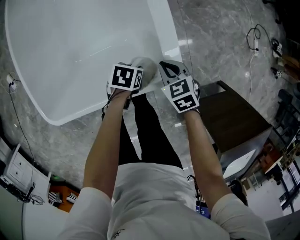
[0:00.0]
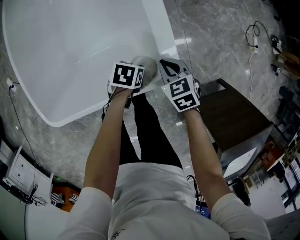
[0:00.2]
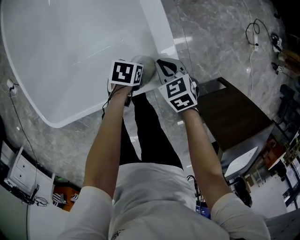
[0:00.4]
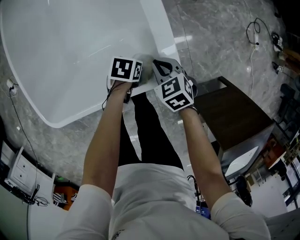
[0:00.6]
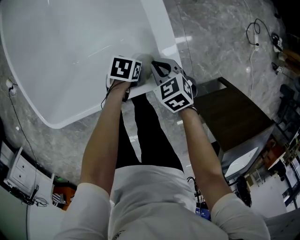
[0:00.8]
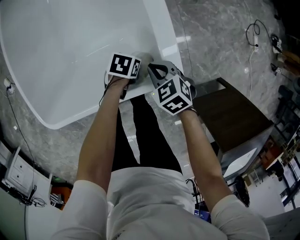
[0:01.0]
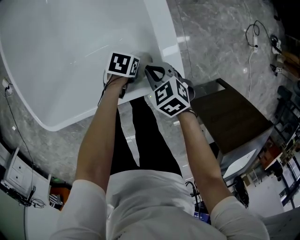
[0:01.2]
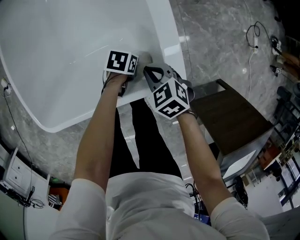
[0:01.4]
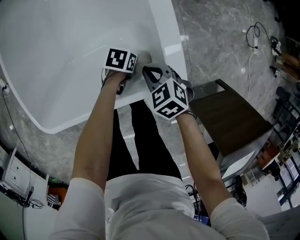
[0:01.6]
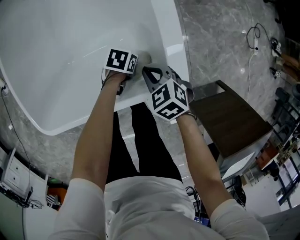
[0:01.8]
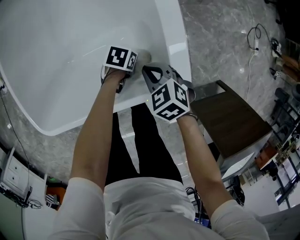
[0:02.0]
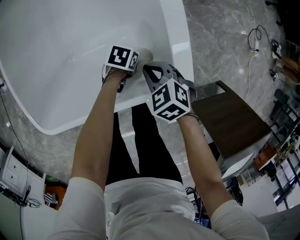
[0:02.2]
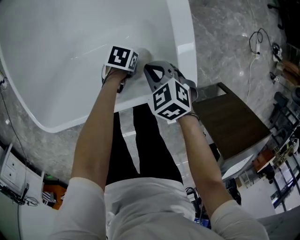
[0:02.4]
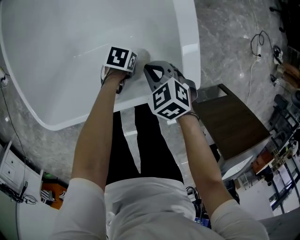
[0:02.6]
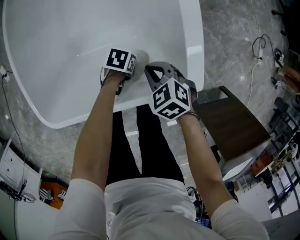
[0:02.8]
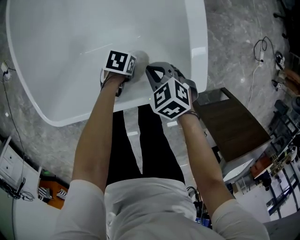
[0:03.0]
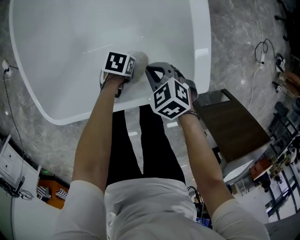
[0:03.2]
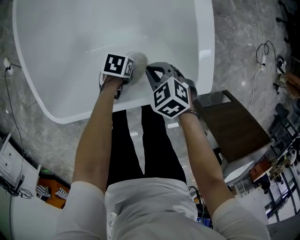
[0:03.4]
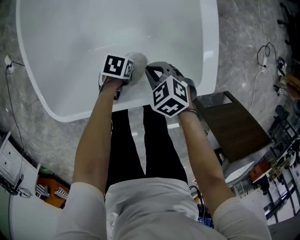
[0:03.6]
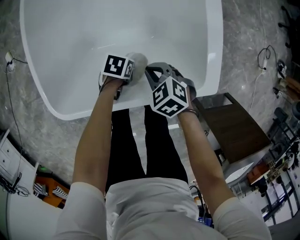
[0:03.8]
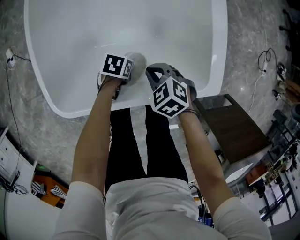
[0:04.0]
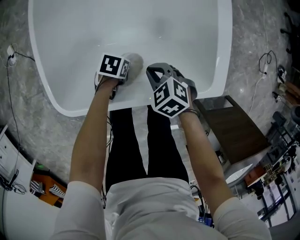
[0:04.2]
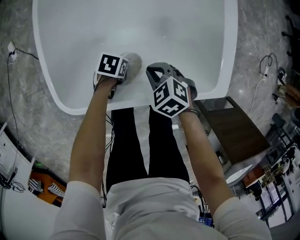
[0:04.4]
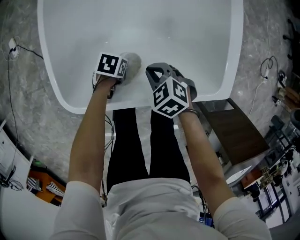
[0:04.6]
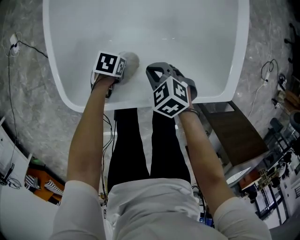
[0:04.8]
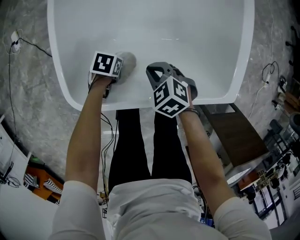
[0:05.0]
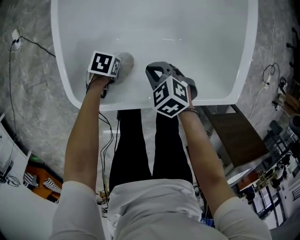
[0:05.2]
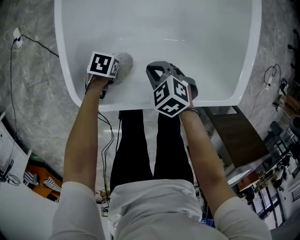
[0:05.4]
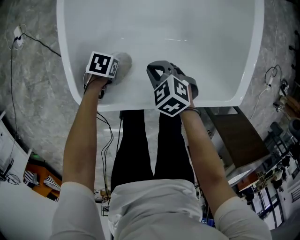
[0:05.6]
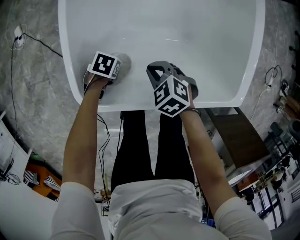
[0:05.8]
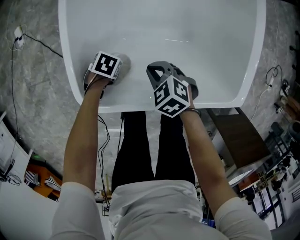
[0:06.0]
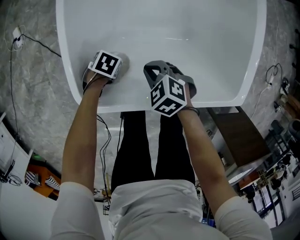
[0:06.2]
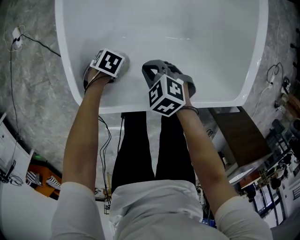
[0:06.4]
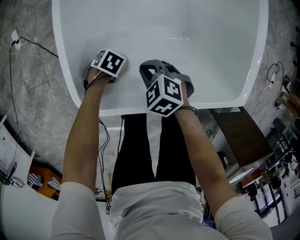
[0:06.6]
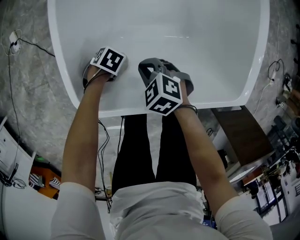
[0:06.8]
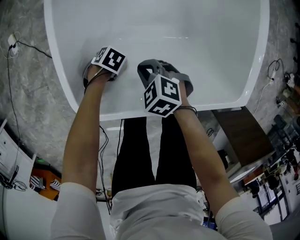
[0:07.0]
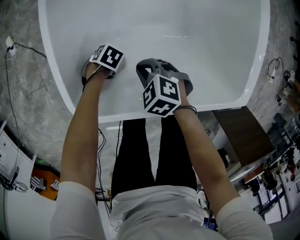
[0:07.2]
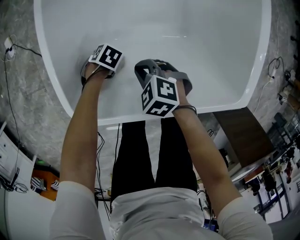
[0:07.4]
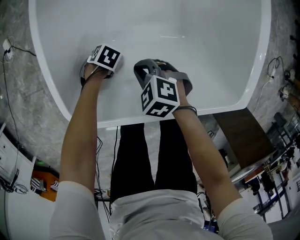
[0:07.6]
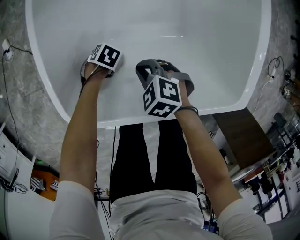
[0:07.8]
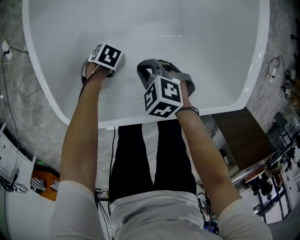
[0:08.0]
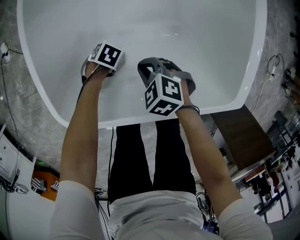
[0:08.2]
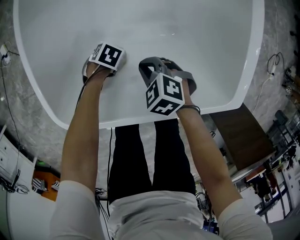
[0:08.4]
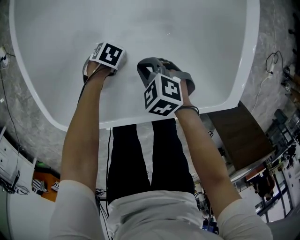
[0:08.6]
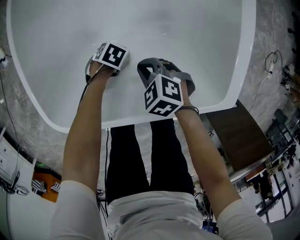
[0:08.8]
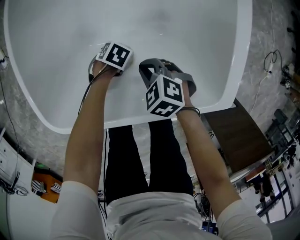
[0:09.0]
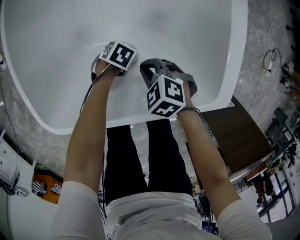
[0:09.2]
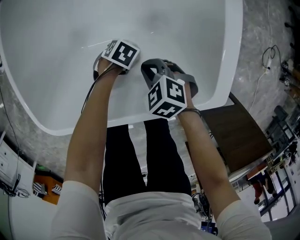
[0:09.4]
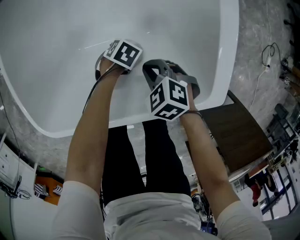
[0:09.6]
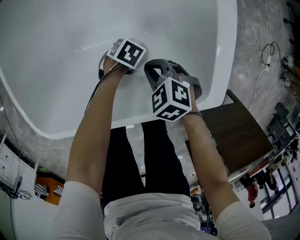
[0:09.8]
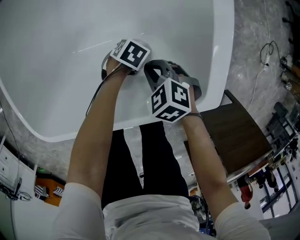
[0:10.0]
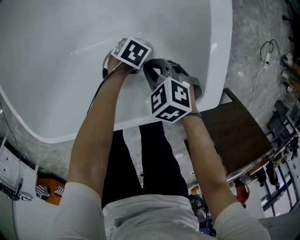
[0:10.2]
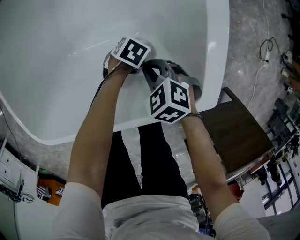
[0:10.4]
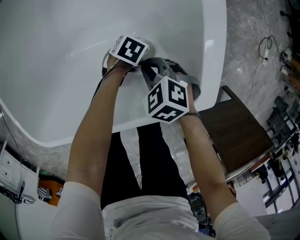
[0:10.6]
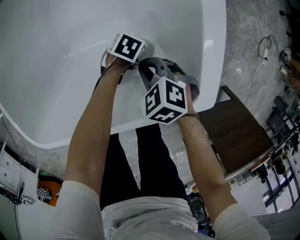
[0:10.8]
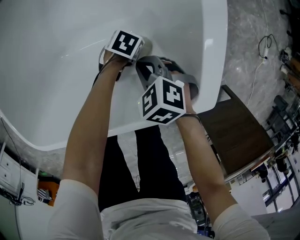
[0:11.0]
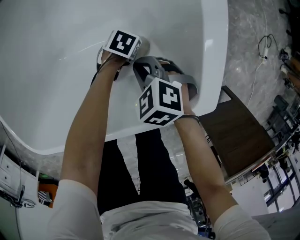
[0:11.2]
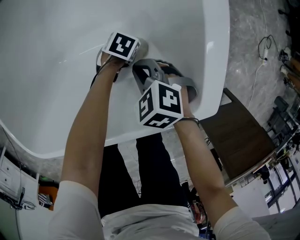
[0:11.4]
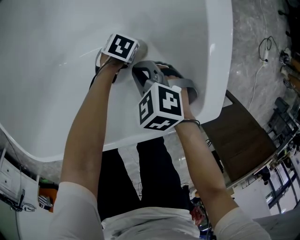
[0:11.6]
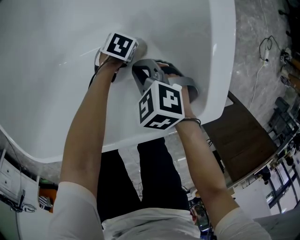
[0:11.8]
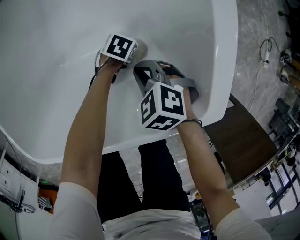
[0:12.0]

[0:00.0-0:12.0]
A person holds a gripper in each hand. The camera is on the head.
0:00.0 to 0:01.6: The right gripper changes place by some 5 cm.
0:01.6 to 0:03.0: The right gripper ends up some 5 cm from where it was.
0:03.0 to 0:04.4: The right gripper shifts by some 15 cm.
0:04.4 to 0:06.0: The right gripper shifts by about 10 cm.
0:07.6 to 0:09.0: The right gripper ends up roughly 15 cm from where it was.
0:09.0 to 0:10.4: The right gripper changes place by some 10 cm.

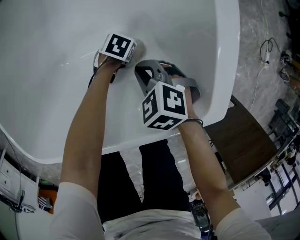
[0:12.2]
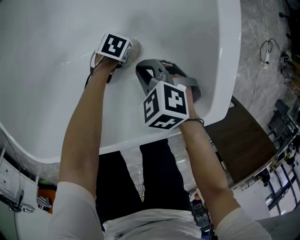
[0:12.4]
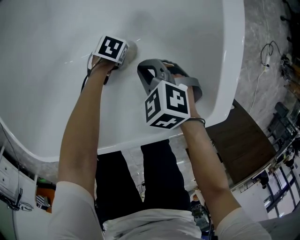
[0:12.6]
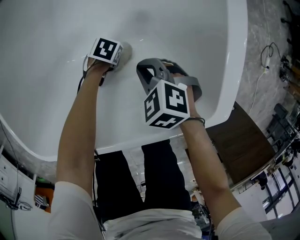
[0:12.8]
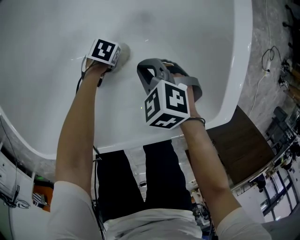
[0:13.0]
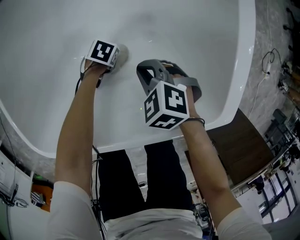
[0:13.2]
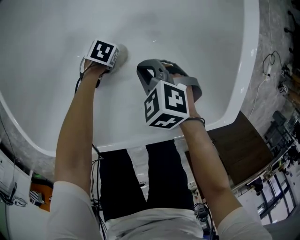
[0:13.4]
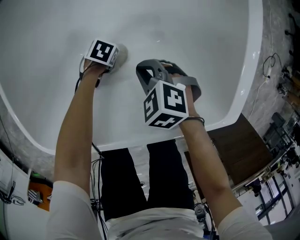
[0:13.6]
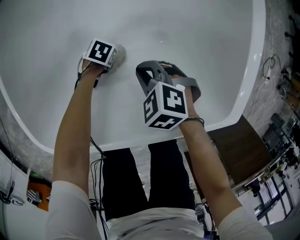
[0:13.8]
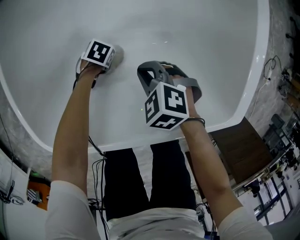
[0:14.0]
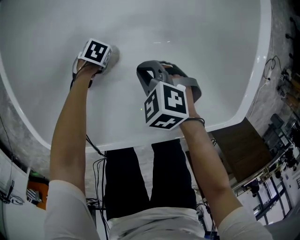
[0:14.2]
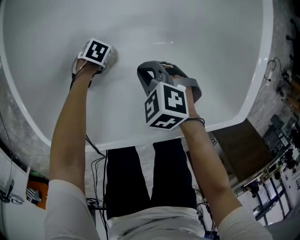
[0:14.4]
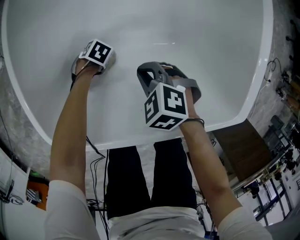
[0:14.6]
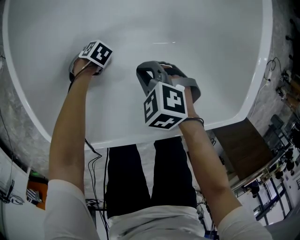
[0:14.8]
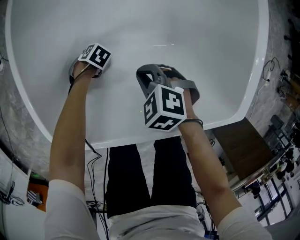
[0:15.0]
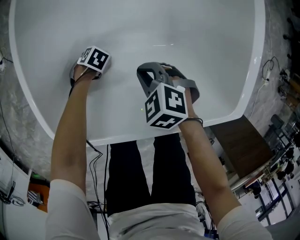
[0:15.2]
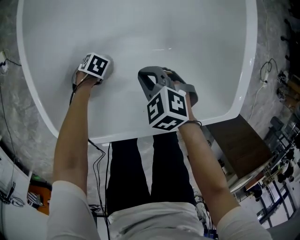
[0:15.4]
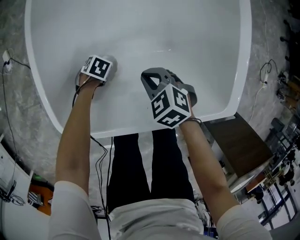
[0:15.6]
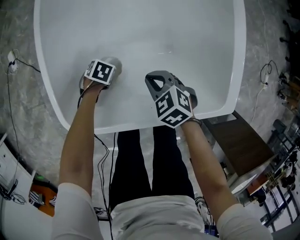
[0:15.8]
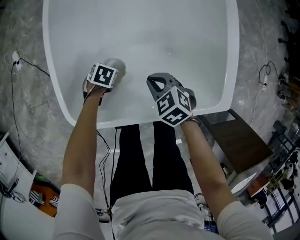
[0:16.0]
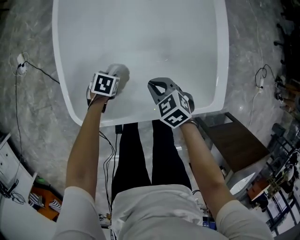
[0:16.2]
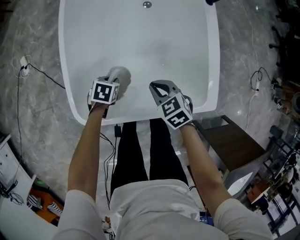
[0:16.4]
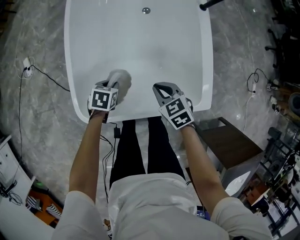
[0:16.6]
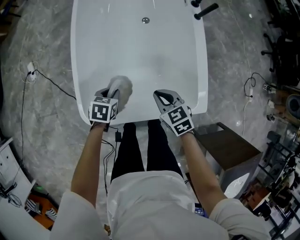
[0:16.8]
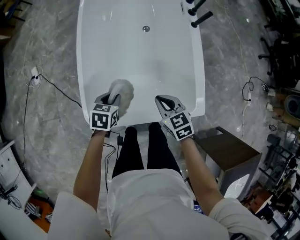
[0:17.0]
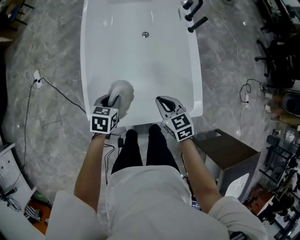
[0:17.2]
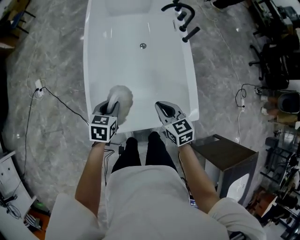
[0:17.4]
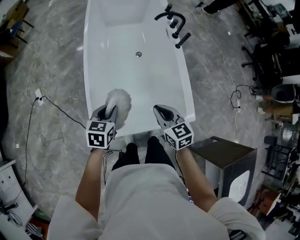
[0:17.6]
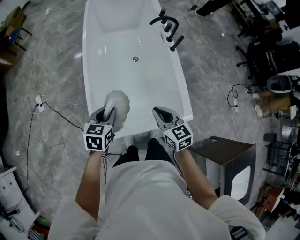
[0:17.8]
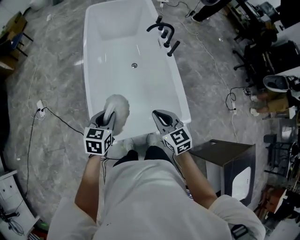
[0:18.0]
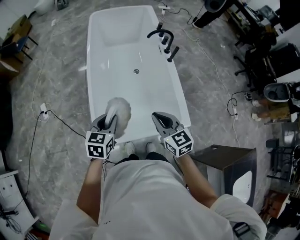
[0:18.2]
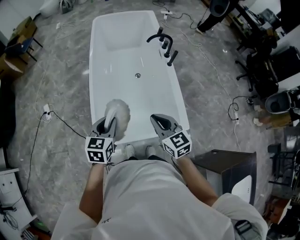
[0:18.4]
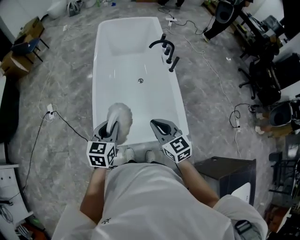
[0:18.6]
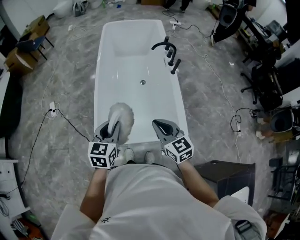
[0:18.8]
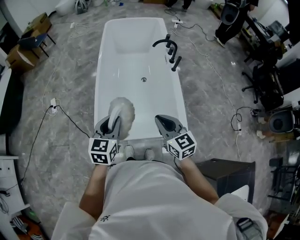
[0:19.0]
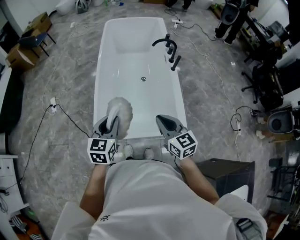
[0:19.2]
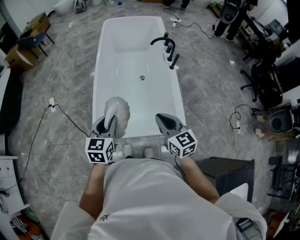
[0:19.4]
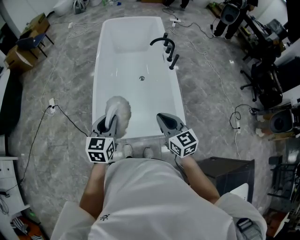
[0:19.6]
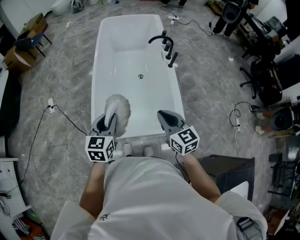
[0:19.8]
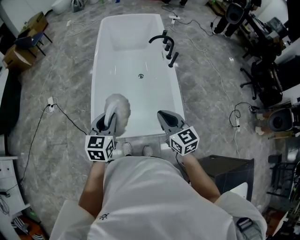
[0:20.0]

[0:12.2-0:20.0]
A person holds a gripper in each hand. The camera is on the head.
0:12.2 to 0:13.8: The right gripper shifts by roughly 10 cm.
0:13.8 to 0:15.4: The right gripper ends up roughly 5 cm from where it was.
0:15.4 to 0:16.8: The right gripper travels upward by about 20 cm, and swivels approximately 30 degrees.
0:16.8 to 0:18.4: The right gripper heads upward, covering roughly 25 cm, and rotates about 30 degrees.
0:18.4 to 0:20.0: The right gripper moves roughly 5 cm.

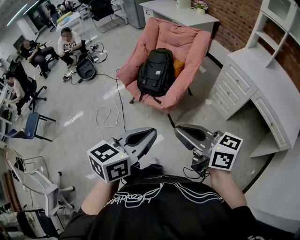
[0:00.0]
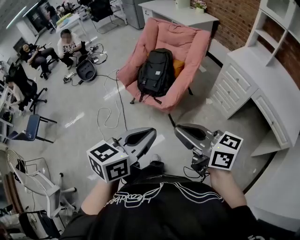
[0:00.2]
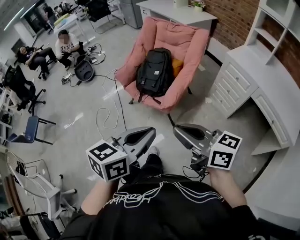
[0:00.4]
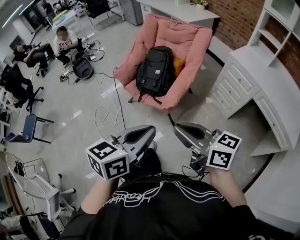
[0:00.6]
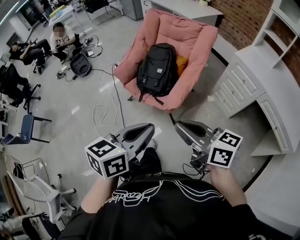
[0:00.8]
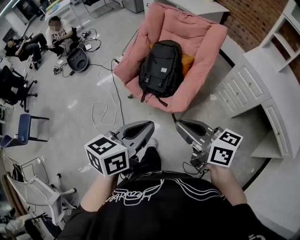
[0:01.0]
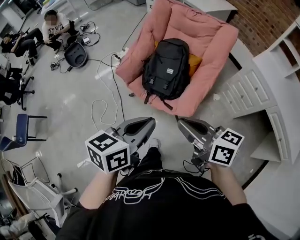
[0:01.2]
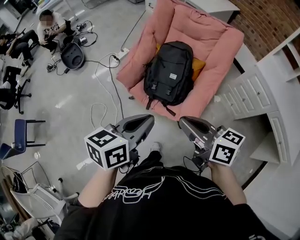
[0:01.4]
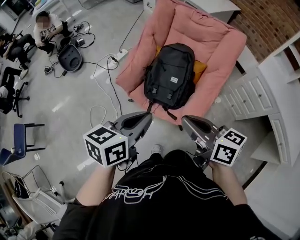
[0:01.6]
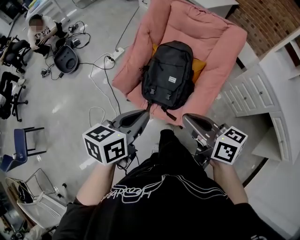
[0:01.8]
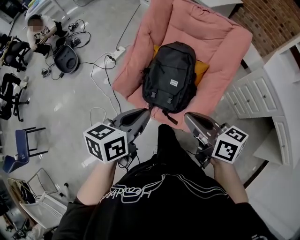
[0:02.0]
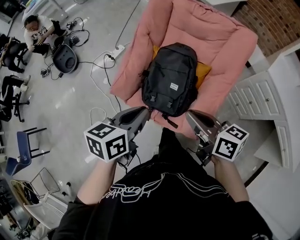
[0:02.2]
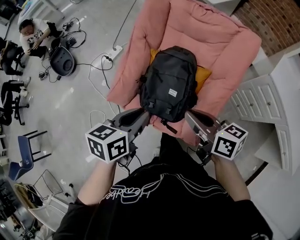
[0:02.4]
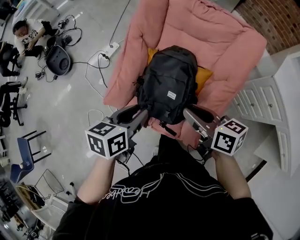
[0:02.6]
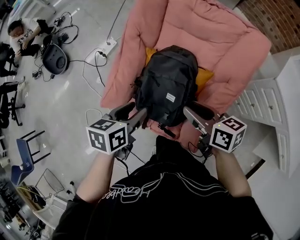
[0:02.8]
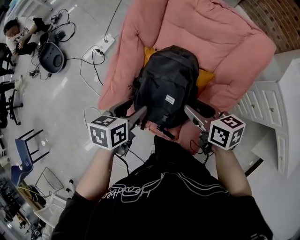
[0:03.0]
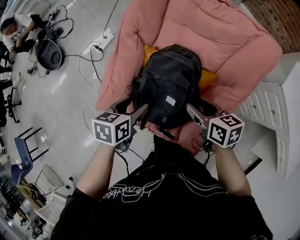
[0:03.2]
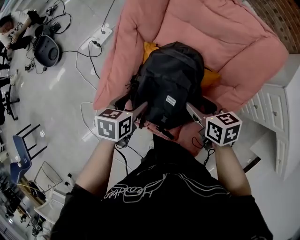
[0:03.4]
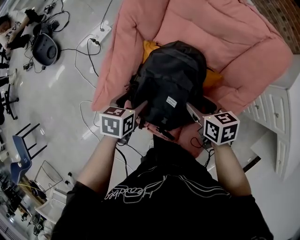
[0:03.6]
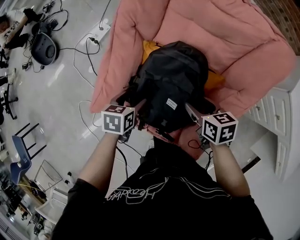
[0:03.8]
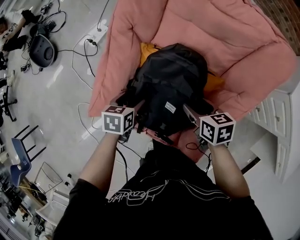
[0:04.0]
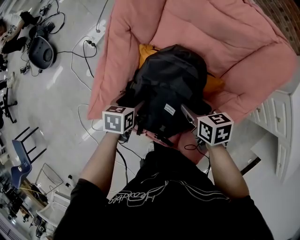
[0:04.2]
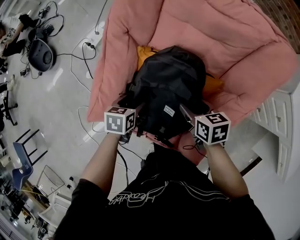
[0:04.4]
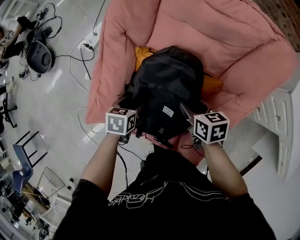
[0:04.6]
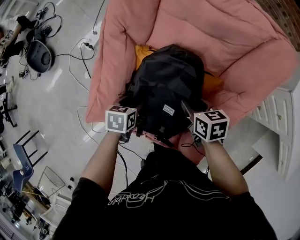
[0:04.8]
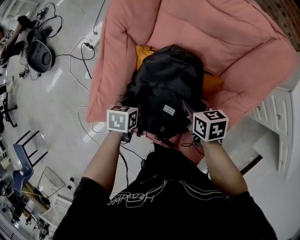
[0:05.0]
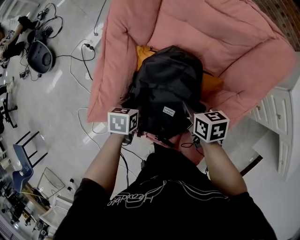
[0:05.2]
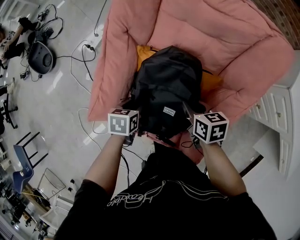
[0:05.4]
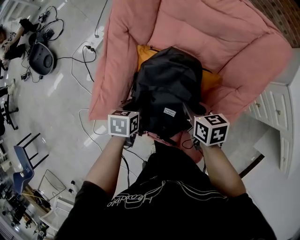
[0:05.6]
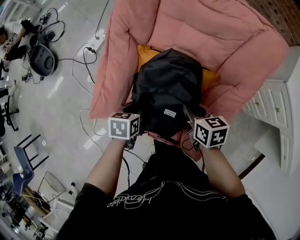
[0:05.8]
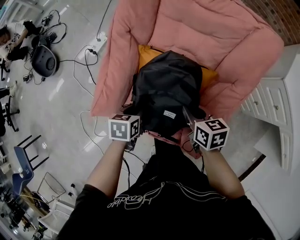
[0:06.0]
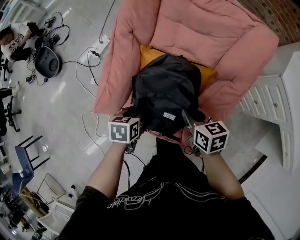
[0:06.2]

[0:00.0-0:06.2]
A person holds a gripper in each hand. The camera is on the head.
0:00.0 to 0:01.6: The left gripper shifts some 40 cm forward and to the left. Meanwhile the right gripper goes approximately 35 cm forward.
0:01.6 to 0:03.2: Both grippers move forward and downward, some 35 cm. The left gripper changes its angle by some 30 degrees, and opens its fingers; the right gripper changes its angle by some 30 degrees, and opens its fingers.
0:03.2 to 0:04.6: Both grippers travel together downward, some 15 cm.
0:04.6 to 0:06.2: Both grippers move backward and upward, about 10 cm. The right gripper closes; the left gripper closes up.
